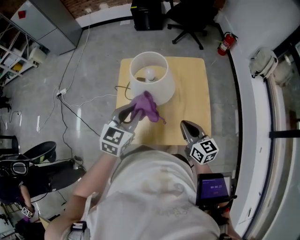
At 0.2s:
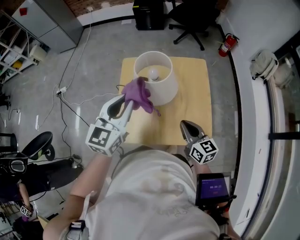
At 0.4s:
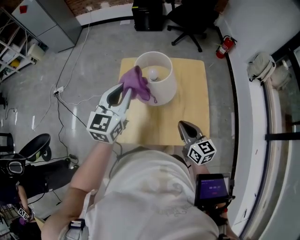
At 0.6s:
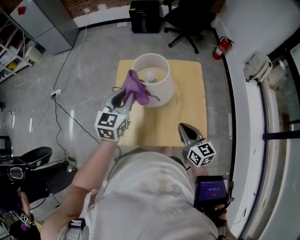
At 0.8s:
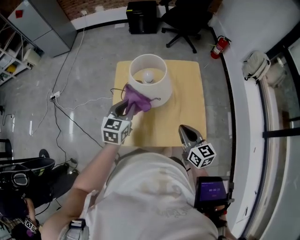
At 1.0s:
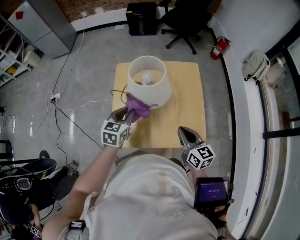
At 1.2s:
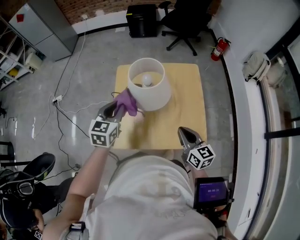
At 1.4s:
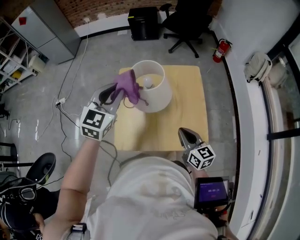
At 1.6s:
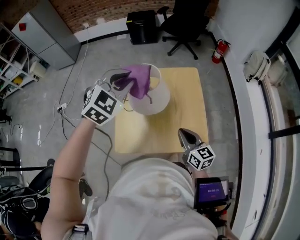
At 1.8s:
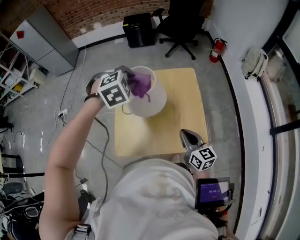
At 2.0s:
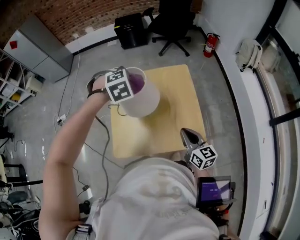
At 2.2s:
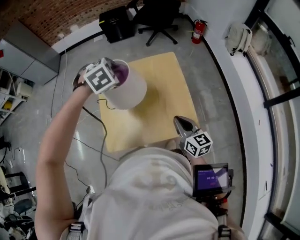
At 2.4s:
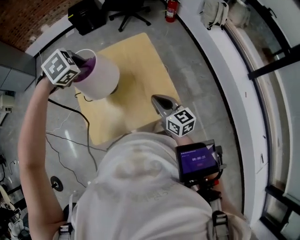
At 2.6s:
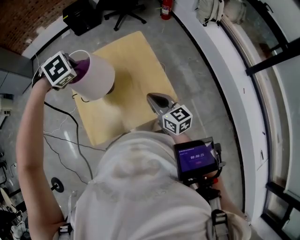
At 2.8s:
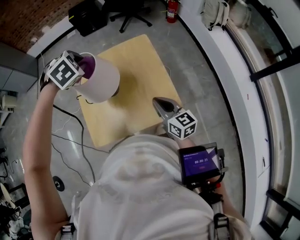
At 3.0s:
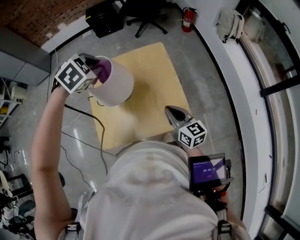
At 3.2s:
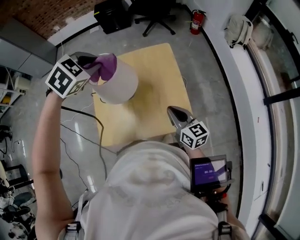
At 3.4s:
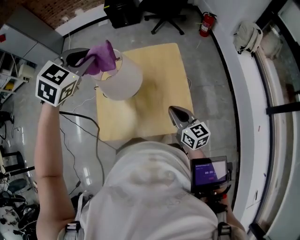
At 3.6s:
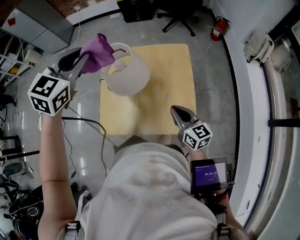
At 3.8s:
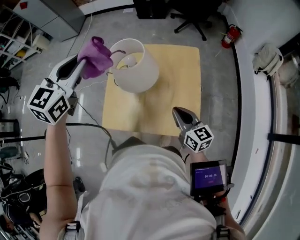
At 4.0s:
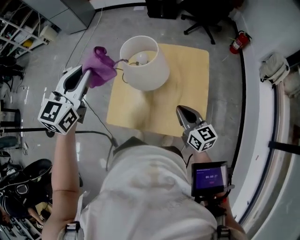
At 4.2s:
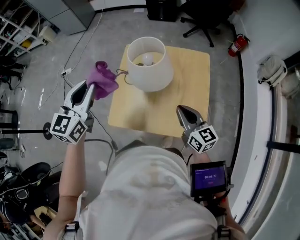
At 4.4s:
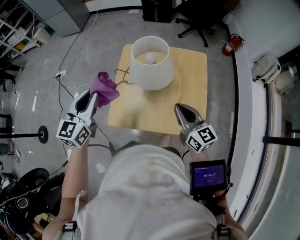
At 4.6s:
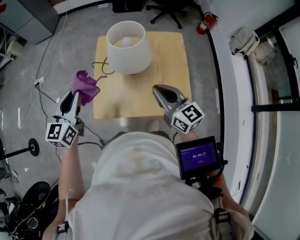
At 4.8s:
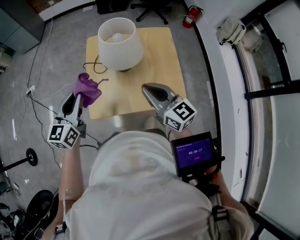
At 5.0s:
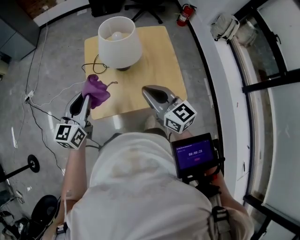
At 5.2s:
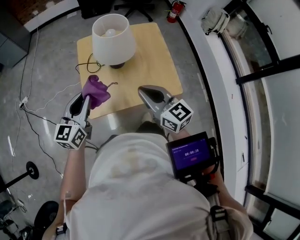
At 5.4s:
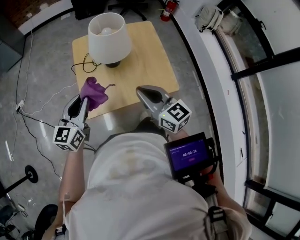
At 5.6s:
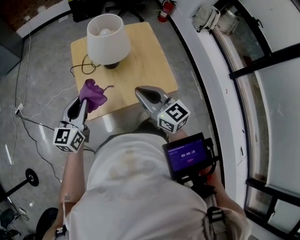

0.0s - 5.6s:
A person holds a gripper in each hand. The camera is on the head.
0.0s - 1.4s: The left gripper swings up and down, approximately 20 cm each way, with 2 reversals.
1.4s - 2.8s: The left gripper shifts by approximately 15 cm, and tilts its fingers roughly 50 degrees downward, while the right gripper changes place by about 5 cm.
2.8s - 4.2s: The right gripper goes approximately 5 cm to the left, and swivels about 20 degrees. The left gripper shifts roughly 25 cm to the left and backward, and points its fingers approximately 50 degrees further upward.
4.2s - 5.6s: The left gripper travels downward and backward by about 15 cm, and swivels approximately 30 degrees. Meanwhile the right gripper travels to the left, backward and upward by about 15 cm.

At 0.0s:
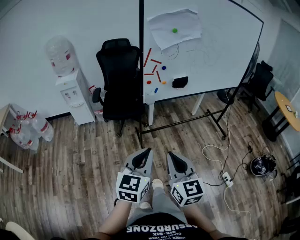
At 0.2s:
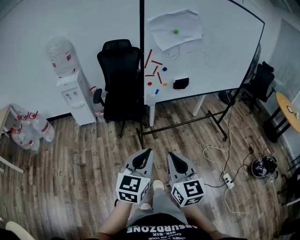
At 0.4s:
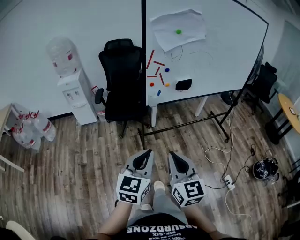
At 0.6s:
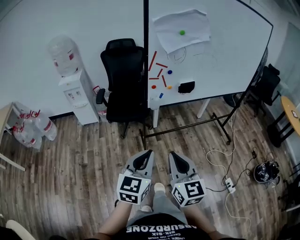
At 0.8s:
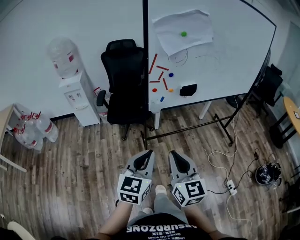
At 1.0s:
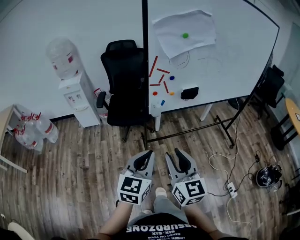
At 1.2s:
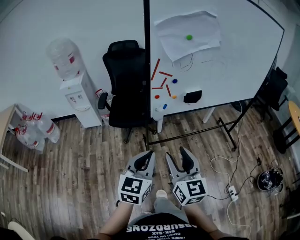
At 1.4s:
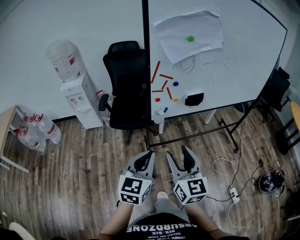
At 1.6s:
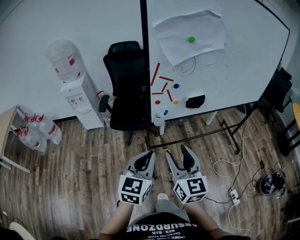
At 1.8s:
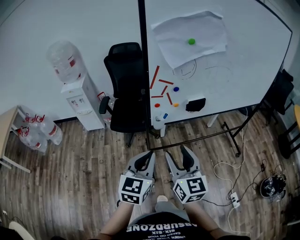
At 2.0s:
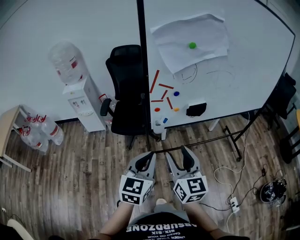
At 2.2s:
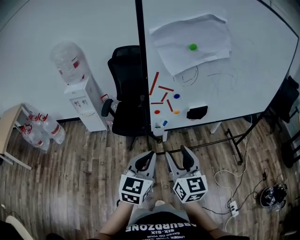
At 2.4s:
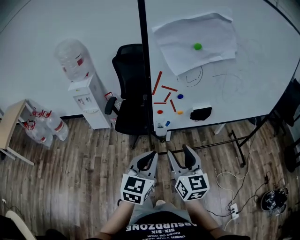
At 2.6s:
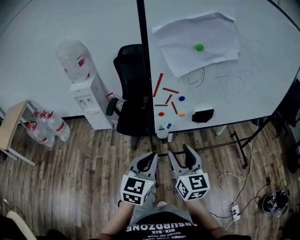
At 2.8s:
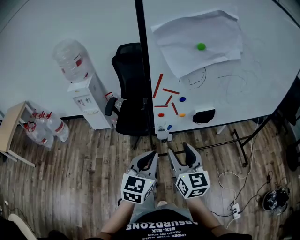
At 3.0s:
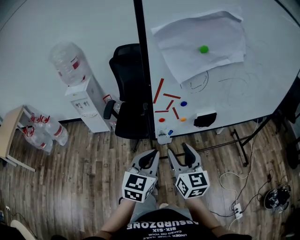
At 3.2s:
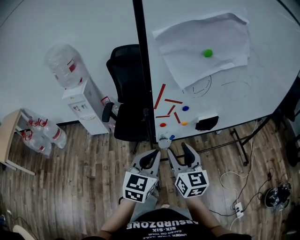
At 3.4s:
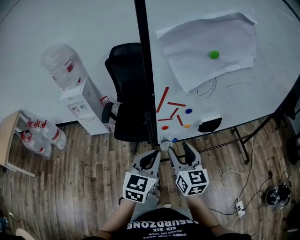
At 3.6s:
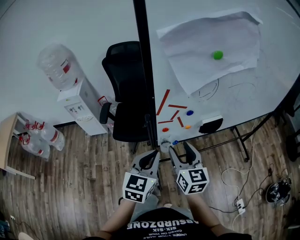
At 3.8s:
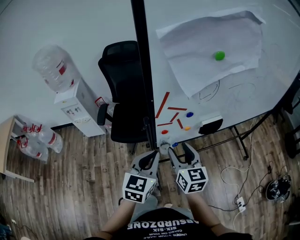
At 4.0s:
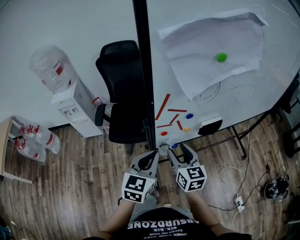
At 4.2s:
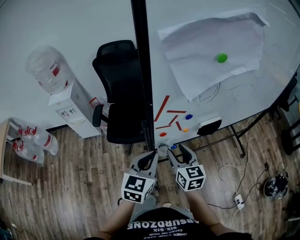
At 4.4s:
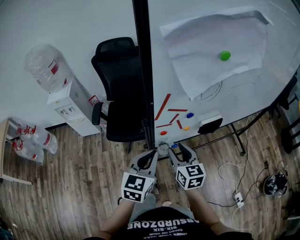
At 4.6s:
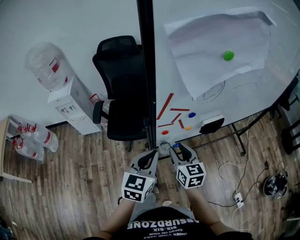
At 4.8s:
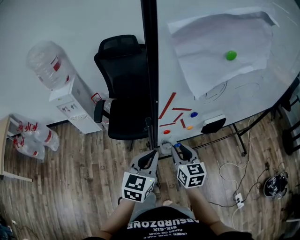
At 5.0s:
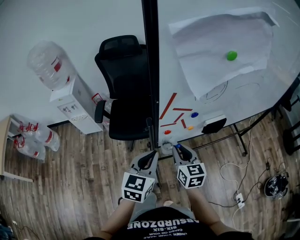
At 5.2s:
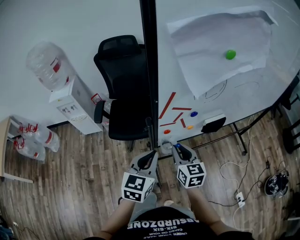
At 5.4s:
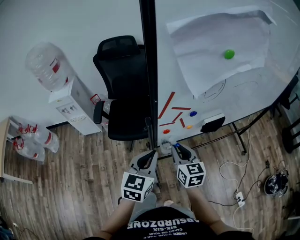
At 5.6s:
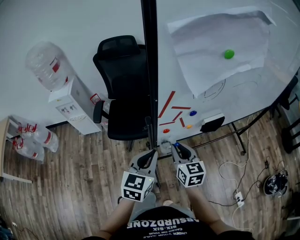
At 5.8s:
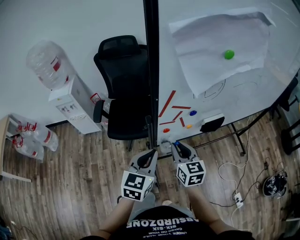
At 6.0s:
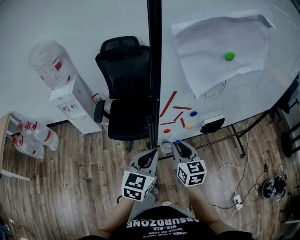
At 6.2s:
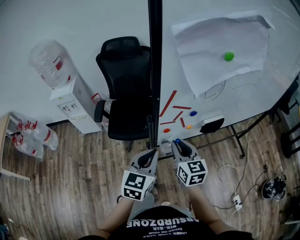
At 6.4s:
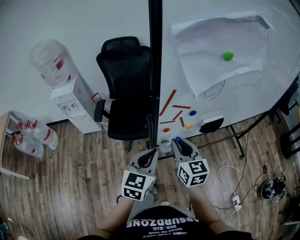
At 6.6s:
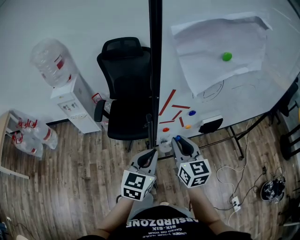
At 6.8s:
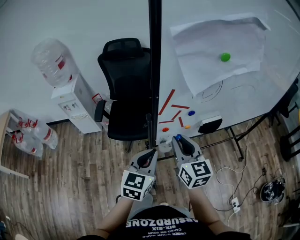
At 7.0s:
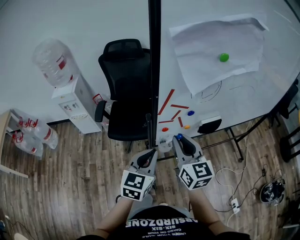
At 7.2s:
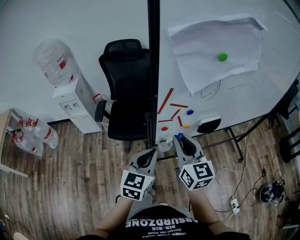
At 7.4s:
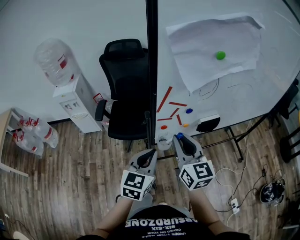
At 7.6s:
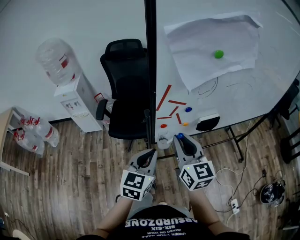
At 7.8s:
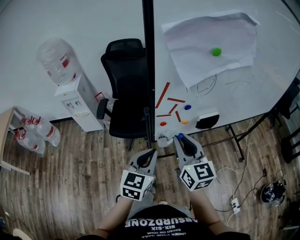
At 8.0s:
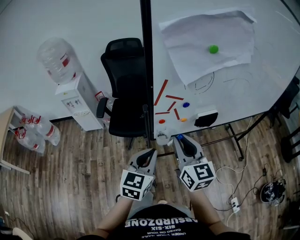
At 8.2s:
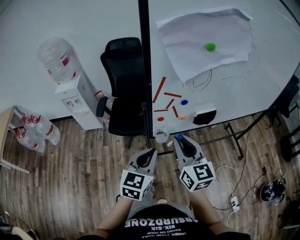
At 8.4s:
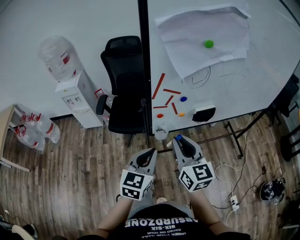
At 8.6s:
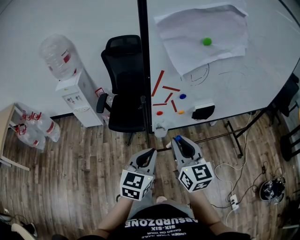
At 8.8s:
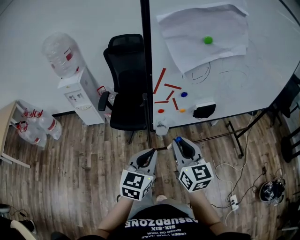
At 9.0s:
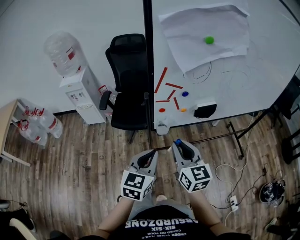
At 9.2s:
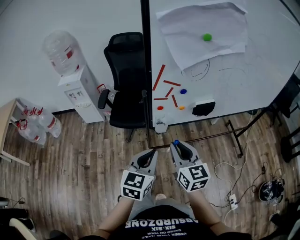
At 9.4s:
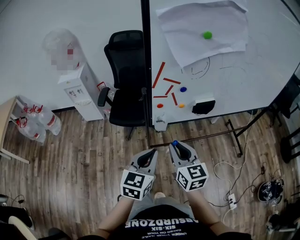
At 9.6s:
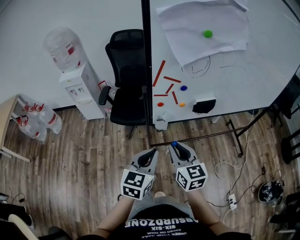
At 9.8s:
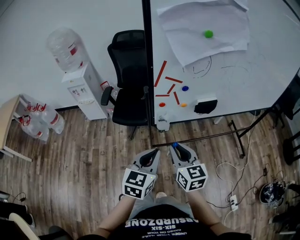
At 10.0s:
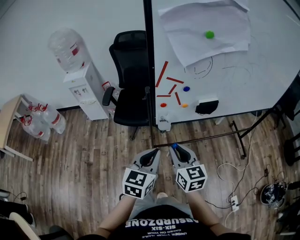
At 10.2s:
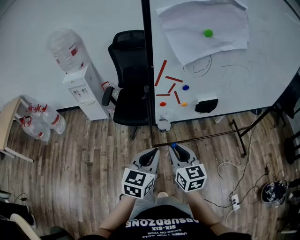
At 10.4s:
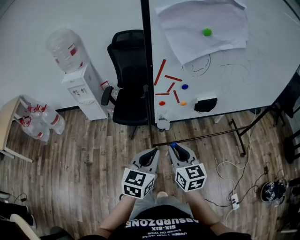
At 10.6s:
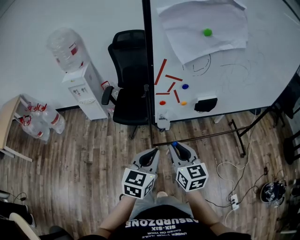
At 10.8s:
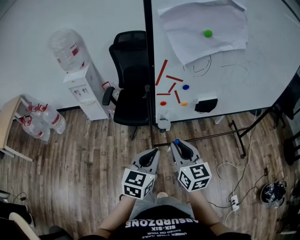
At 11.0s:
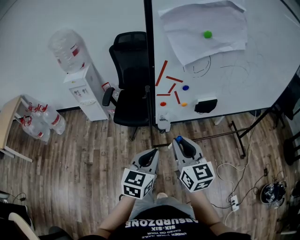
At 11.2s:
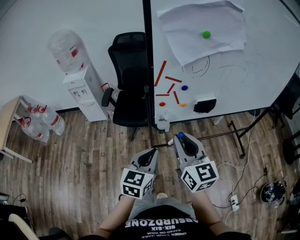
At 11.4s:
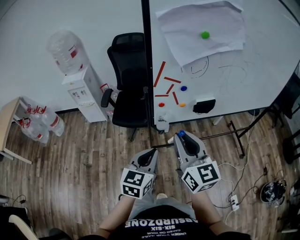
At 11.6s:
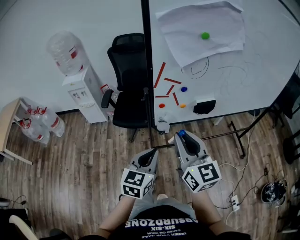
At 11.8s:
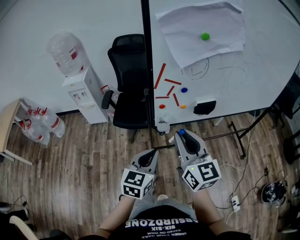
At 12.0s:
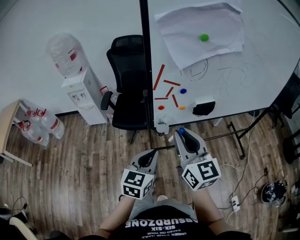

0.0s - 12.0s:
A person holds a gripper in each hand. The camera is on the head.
0.0s - 1.6s: Both grippers travel together forward, about 20 cm. The right gripper opens up.
1.6s - 3.0s: Both grippers travel together forward, about 15 cm.
3.0s - 4.4s: The left gripper shifts roughly 10 cm forward. Meanwhile the right gripper moves forward and downward, roughly 15 cm.
4.4s - 6.0s: The right gripper closes up.
6.0s - 7.6s: The right gripper travels upward by about 10 cm.
7.6s - 9.0s: The two grippers go about 10 cm backward.
9.0s - 10.4s: The right gripper is displaced downward by roughly 5 cm.
10.4s - 12.0s: The right gripper heads upward, covering about 15 cm.

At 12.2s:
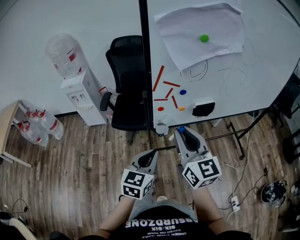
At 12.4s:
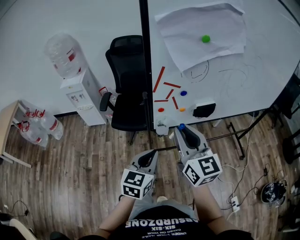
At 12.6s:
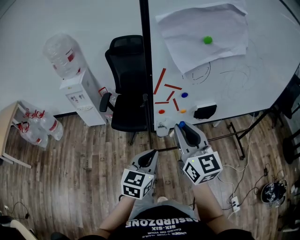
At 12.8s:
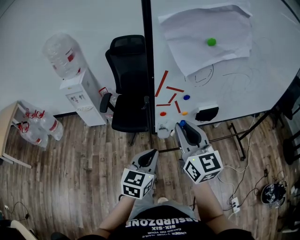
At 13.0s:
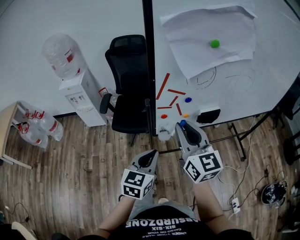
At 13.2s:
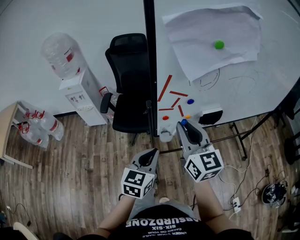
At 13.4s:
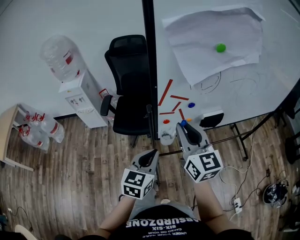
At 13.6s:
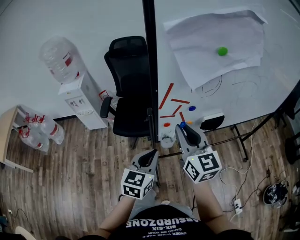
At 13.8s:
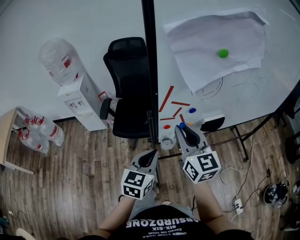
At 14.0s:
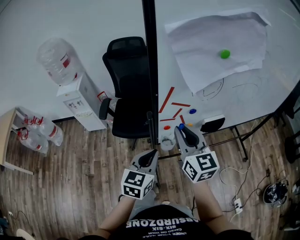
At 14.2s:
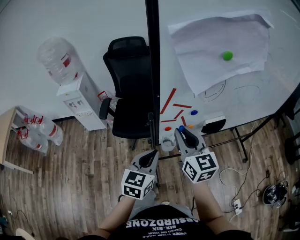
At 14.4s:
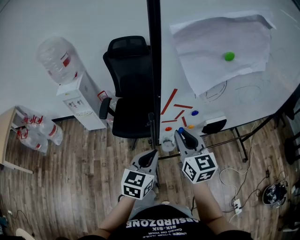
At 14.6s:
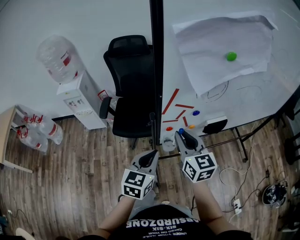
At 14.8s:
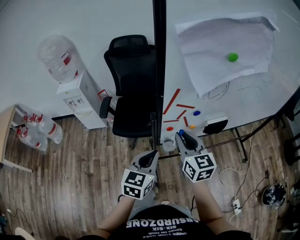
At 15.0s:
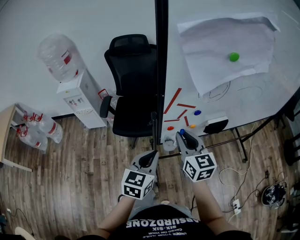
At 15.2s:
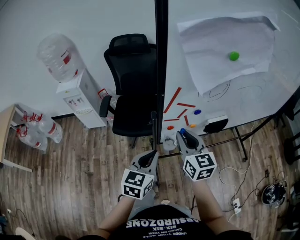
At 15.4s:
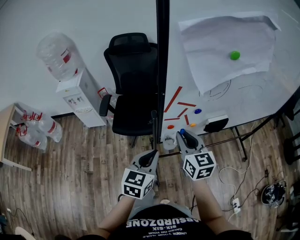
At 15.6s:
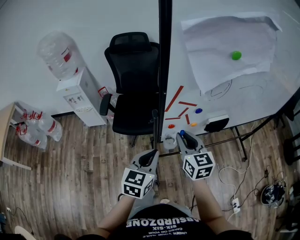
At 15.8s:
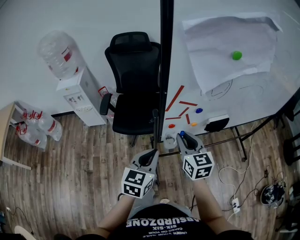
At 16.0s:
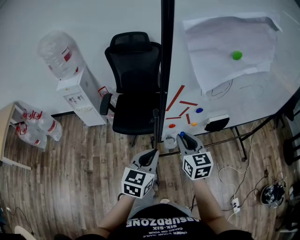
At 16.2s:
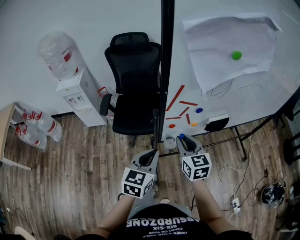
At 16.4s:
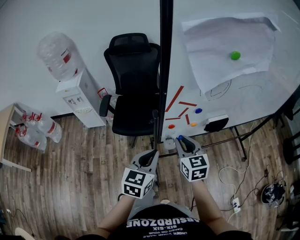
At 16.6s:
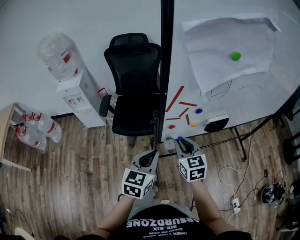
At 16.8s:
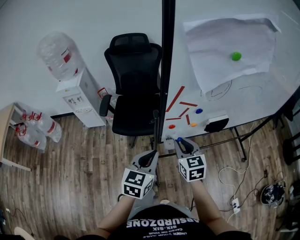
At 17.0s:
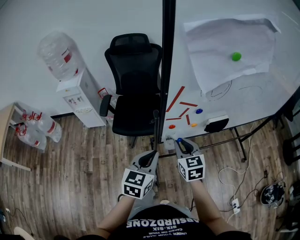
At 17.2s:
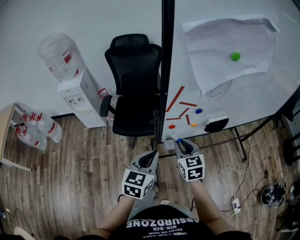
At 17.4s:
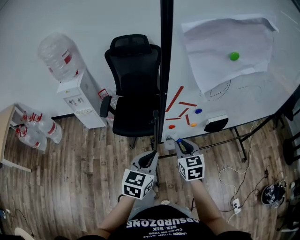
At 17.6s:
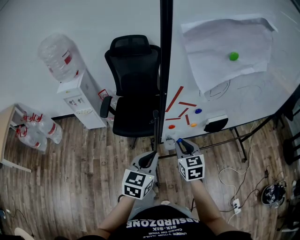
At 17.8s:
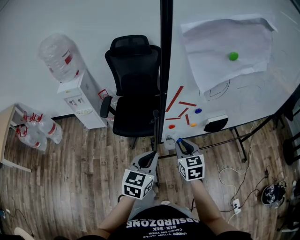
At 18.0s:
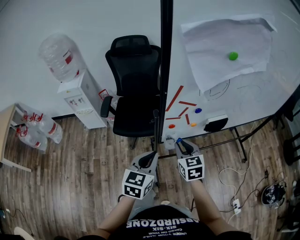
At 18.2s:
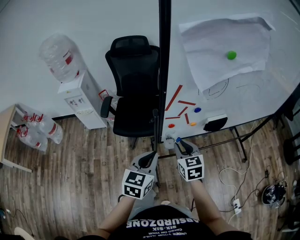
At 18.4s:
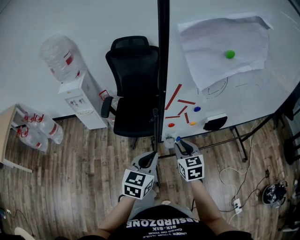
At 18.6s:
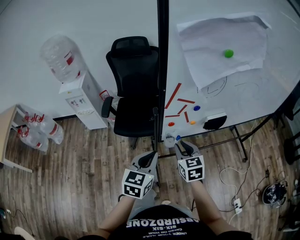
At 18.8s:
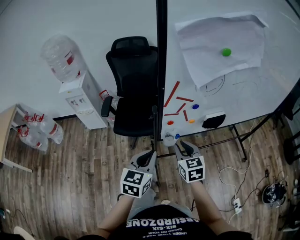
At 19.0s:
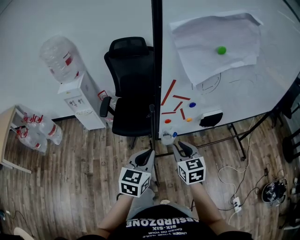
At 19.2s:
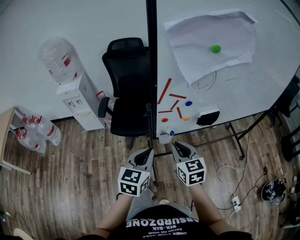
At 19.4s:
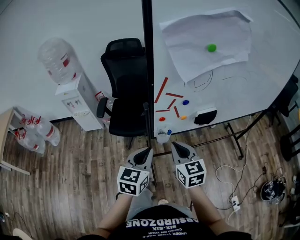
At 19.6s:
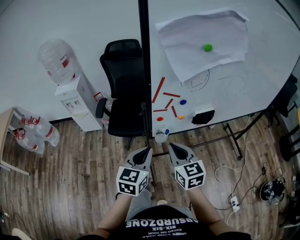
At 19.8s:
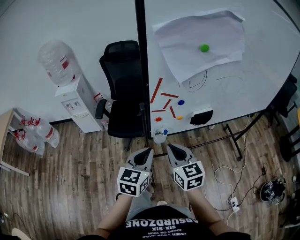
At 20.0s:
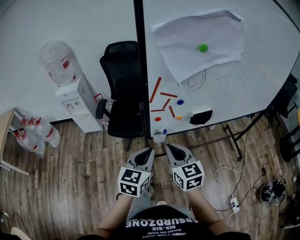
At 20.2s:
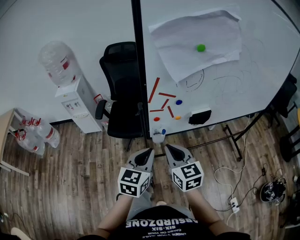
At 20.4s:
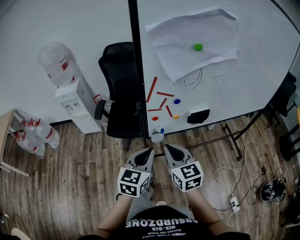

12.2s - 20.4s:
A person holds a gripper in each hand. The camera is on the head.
12.2s - 13.8s: The grippers both shift forward by roughly 10 cm.
13.8s - 15.4s: The right gripper is displaced downward by roughly 10 cm.
15.4s - 17.2s: The right gripper shifts about 10 cm downward.
17.2s - 18.8s: The grippers make only small movements.
18.8s - 20.4s: The left gripper shifts approximately 5 cm to the right. The right gripper moves upward and backward, approximately 10 cm.
